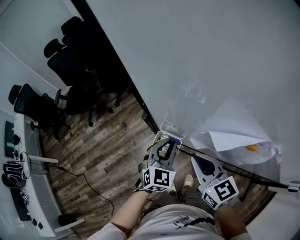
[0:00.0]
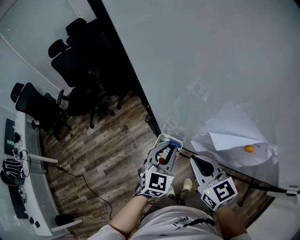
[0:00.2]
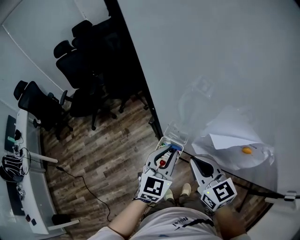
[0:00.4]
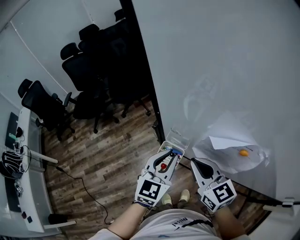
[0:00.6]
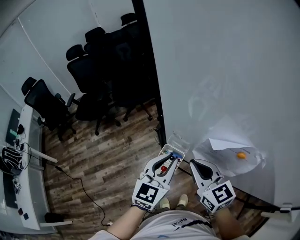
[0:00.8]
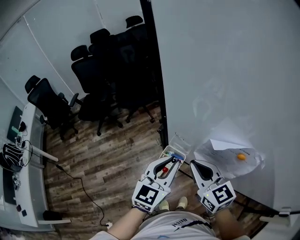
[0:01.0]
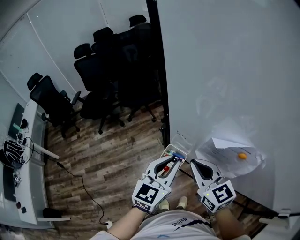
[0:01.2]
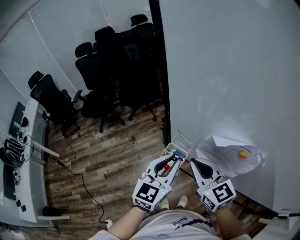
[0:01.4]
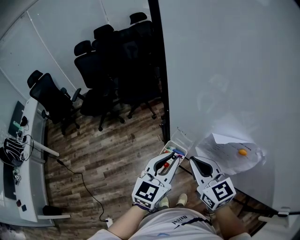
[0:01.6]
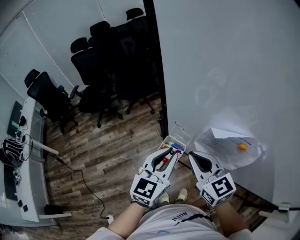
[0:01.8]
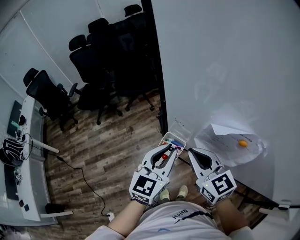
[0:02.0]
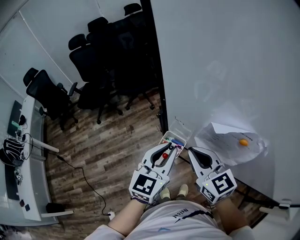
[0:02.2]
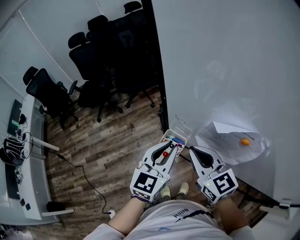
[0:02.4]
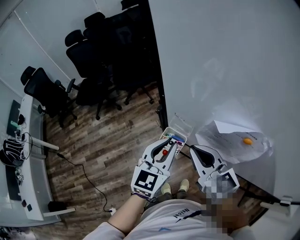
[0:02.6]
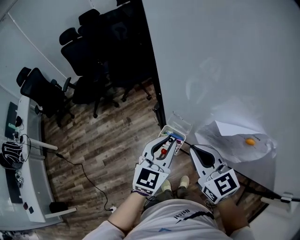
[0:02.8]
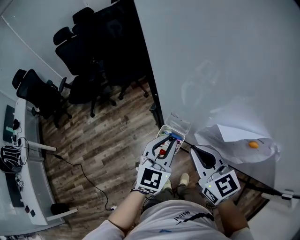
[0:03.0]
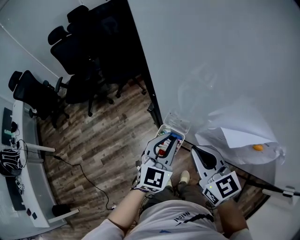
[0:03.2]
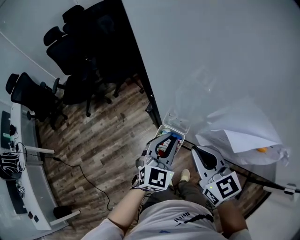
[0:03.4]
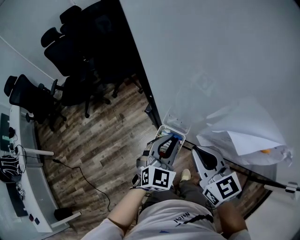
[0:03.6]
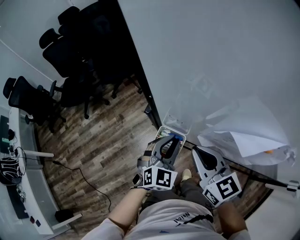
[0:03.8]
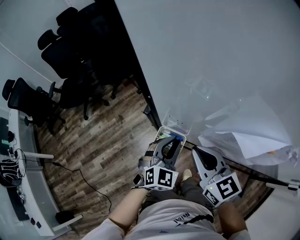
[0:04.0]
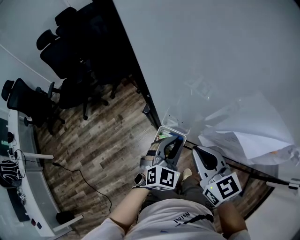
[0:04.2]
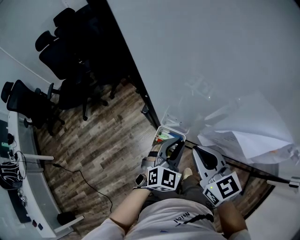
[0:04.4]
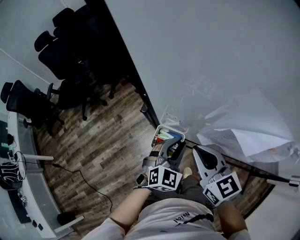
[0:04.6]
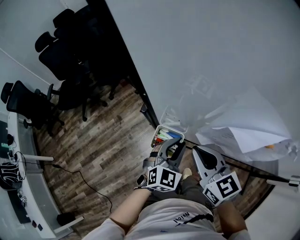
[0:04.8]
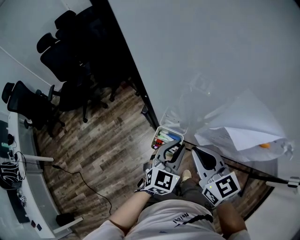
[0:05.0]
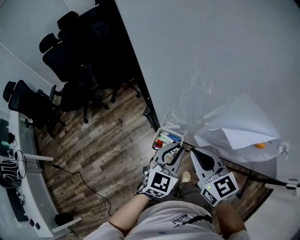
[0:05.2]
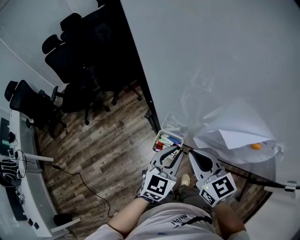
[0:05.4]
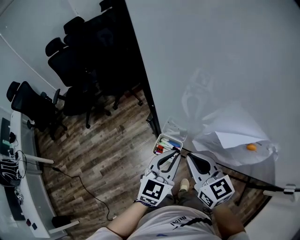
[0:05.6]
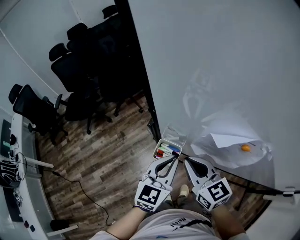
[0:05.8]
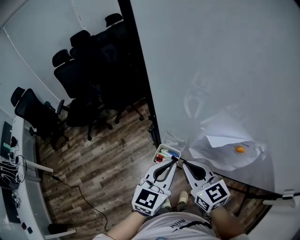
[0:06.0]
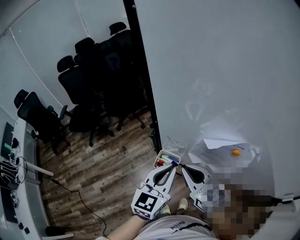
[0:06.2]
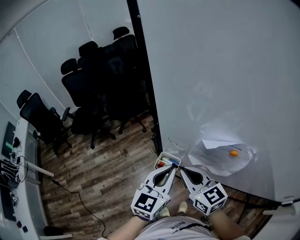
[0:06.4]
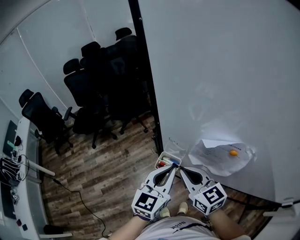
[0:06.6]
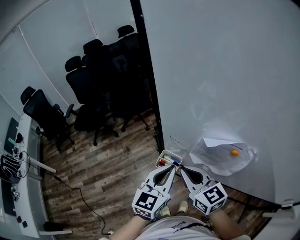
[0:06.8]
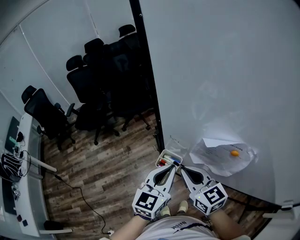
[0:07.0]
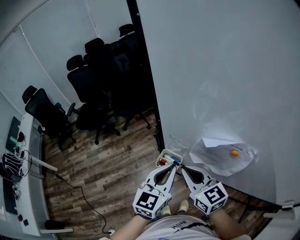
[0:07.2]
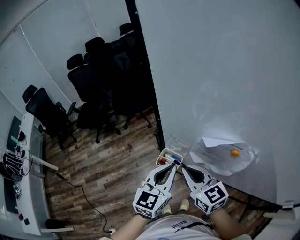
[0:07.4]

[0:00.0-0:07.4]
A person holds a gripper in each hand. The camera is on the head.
0:00.0 to 0:01.4: The right gripper goes about 5 cm upward; the left gripper travels upward and backward by about 15 cm, and turns by some 30 degrees.
0:01.4 to 0:03.0: The left gripper shifts some 5 cm downward.
0:03.0 to 0:04.4: The left gripper moves downward, approximately 15 cm, and swivels some 20 degrees. The right gripper heads downward, covering some 5 cm.
0:04.4 to 0:06.0: The right gripper shifts about 5 cm upward; the left gripper heads upward, covering roughly 15 cm, and turns by some 30 degrees.
0:06.0 to 0:07.4: There are only small adjustments of the grippers.

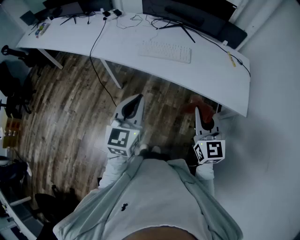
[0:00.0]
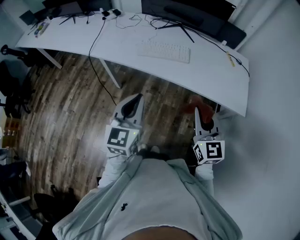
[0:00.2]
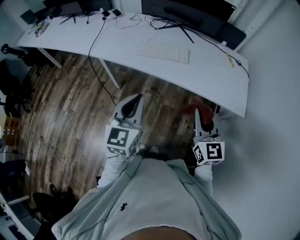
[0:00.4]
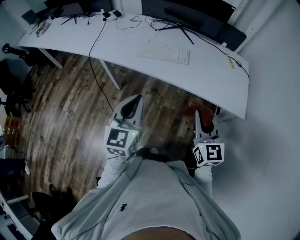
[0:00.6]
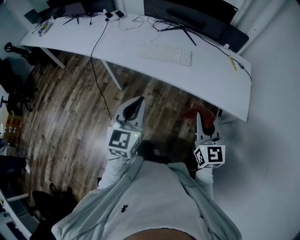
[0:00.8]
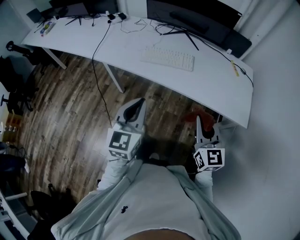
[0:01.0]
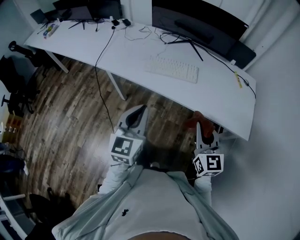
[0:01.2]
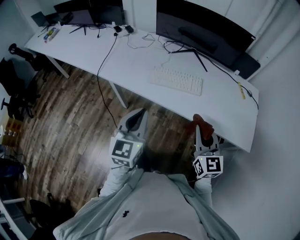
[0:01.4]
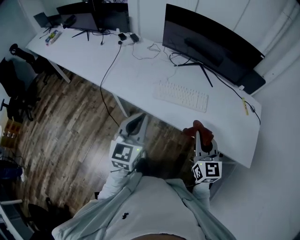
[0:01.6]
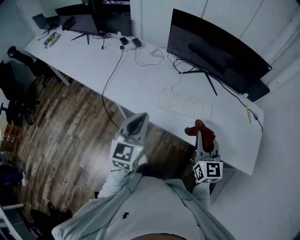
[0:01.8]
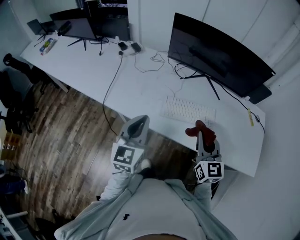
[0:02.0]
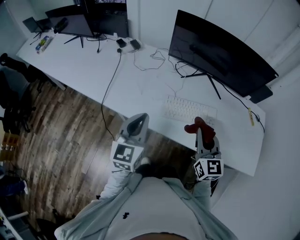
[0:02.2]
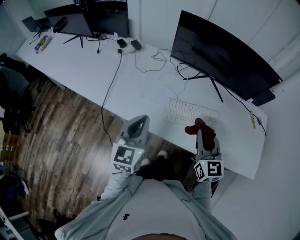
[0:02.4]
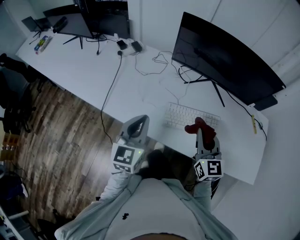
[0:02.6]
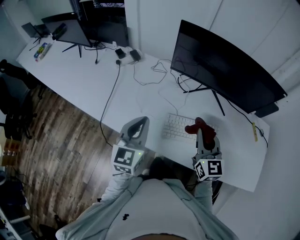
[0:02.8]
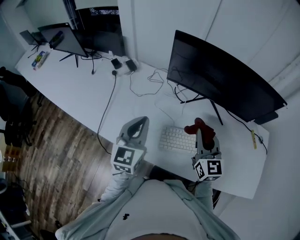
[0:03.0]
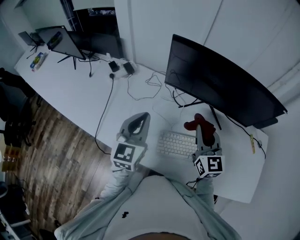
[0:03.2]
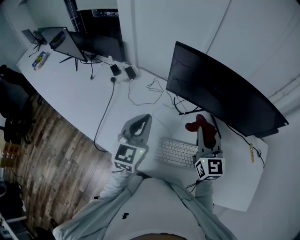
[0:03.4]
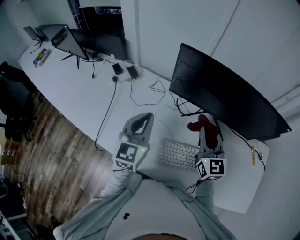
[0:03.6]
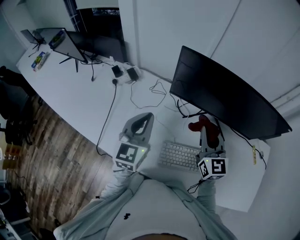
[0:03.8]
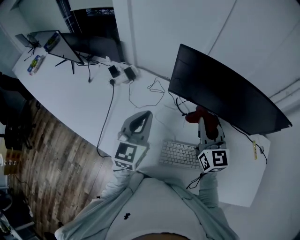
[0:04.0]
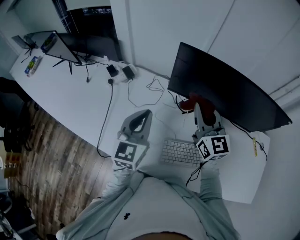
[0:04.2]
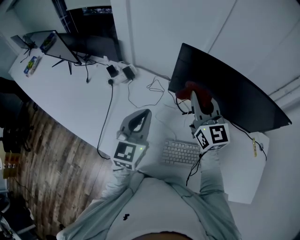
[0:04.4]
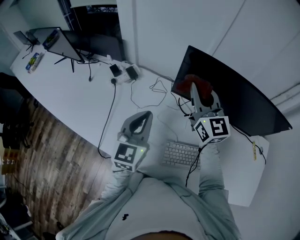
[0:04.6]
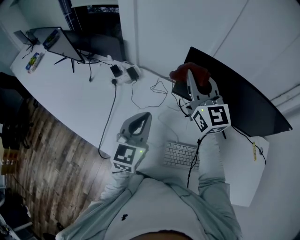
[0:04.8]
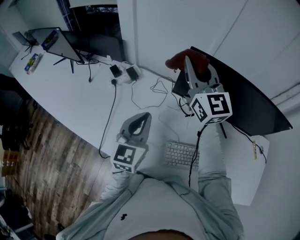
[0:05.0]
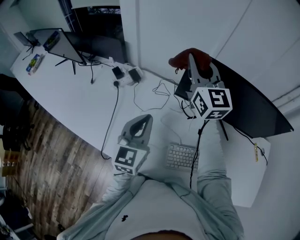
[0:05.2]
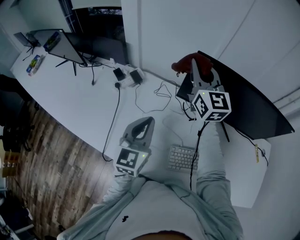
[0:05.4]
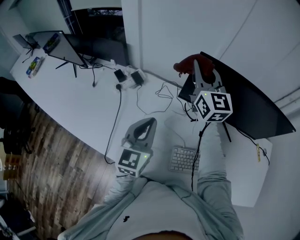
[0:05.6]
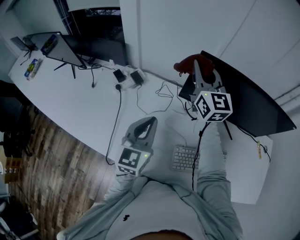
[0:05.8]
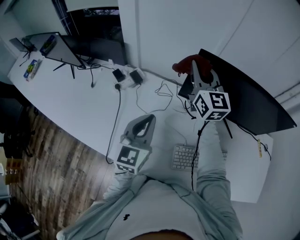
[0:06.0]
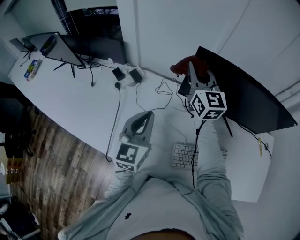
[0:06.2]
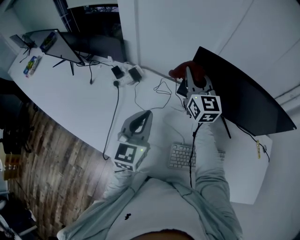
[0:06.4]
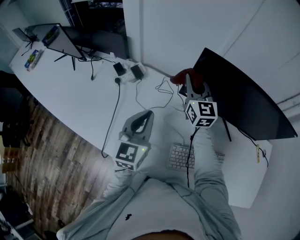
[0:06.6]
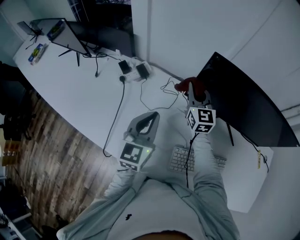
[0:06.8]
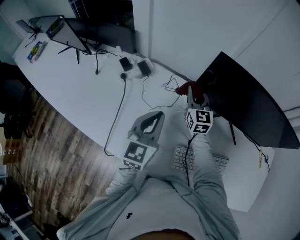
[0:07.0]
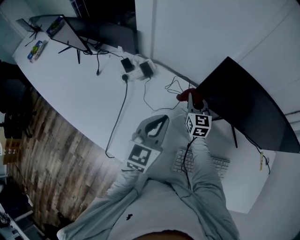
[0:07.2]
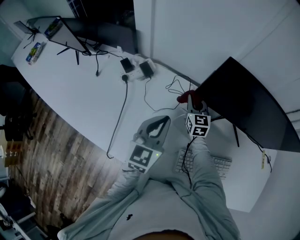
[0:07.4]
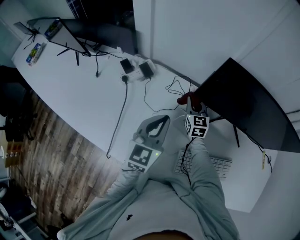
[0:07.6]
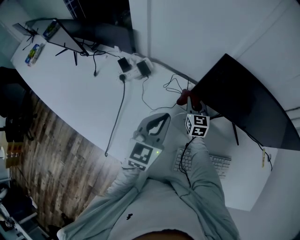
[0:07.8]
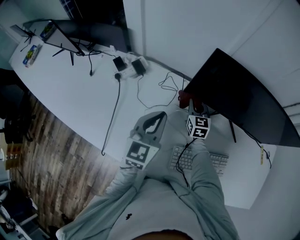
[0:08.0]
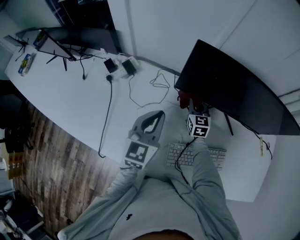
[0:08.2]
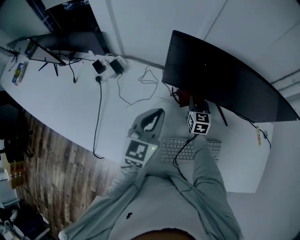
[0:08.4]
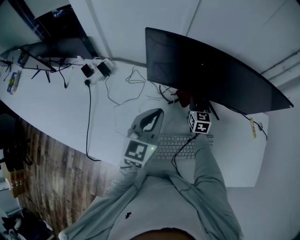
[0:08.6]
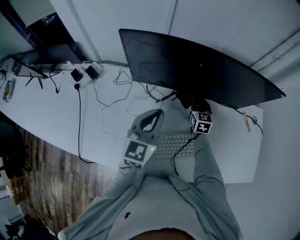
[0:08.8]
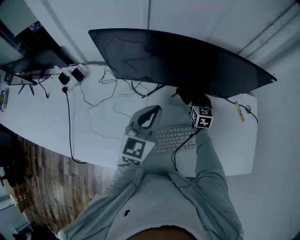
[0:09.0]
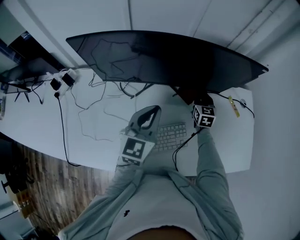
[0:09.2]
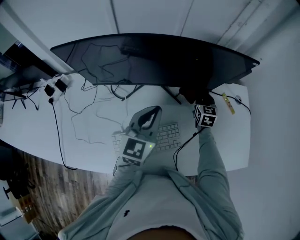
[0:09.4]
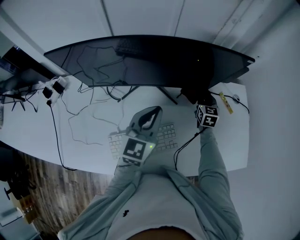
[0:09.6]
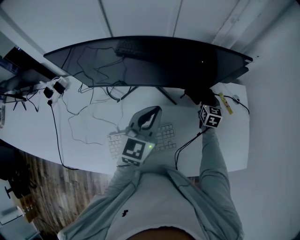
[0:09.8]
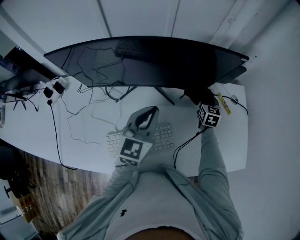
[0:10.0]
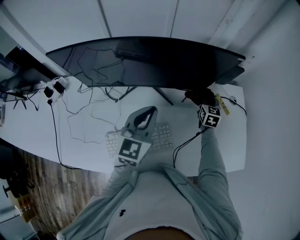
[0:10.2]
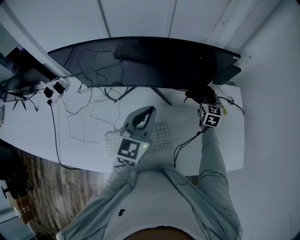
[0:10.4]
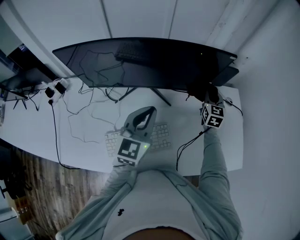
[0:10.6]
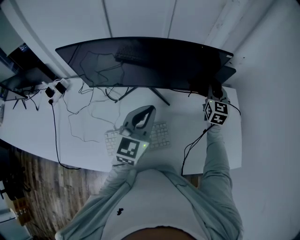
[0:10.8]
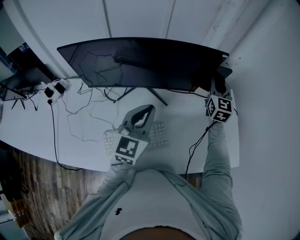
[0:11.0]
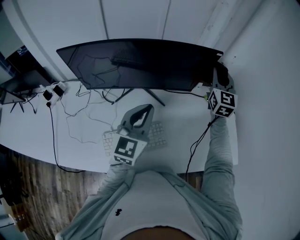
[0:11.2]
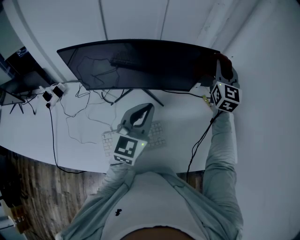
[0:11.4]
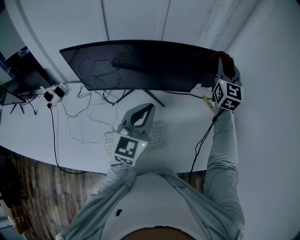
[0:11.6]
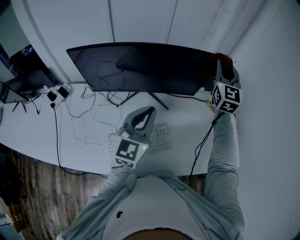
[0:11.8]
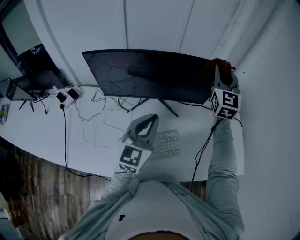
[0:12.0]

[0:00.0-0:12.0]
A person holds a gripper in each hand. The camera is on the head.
0:00.0 to 0:01.6: The right gripper is displaced forward by approximately 20 cm. The left gripper goes roughly 20 cm forward and to the left.
0:01.6 to 0:03.0: The grippers both shift forward by approximately 30 cm.
0:03.0 to 0:04.4: The left gripper is displaced forward by roughly 10 cm. Meanwhile the right gripper heads forward, upward and to the left, covering some 25 cm.
0:04.4 to 0:06.0: The right gripper is displaced forward and to the left by roughly 15 cm.
0:06.0 to 0:07.6: The right gripper goes roughly 30 cm downward, and rotates approximately 30 degrees, while the left gripper moves approximately 5 cm.
0:07.6 to 0:09.0: The grippers both shift to the right by some 35 cm. The right gripper swivels approximately 20 degrees.
0:09.0 to 0:10.4: The right gripper moves to the right, approximately 20 cm; the left gripper heads to the right, covering roughly 15 cm.
0:10.4 to 0:12.0: The right gripper travels upward by some 30 cm, and changes its angle by some 30 degrees. Meanwhile the left gripper goes roughly 10 cm backward and upward.

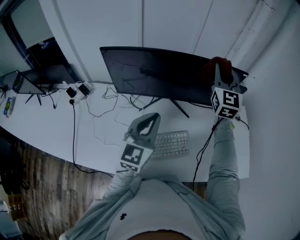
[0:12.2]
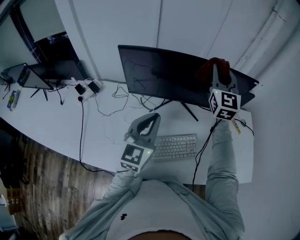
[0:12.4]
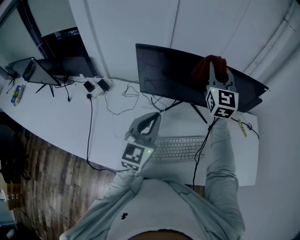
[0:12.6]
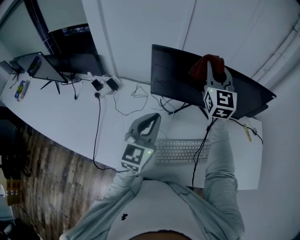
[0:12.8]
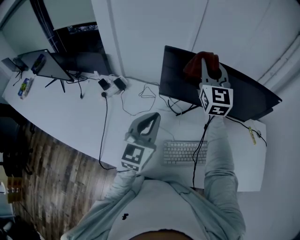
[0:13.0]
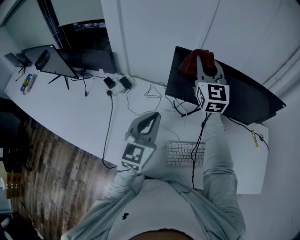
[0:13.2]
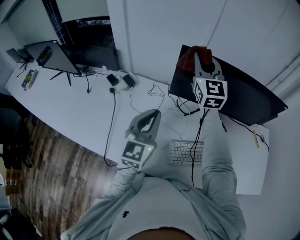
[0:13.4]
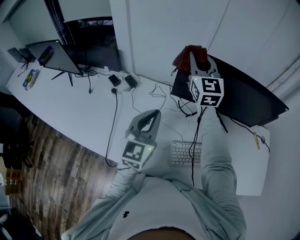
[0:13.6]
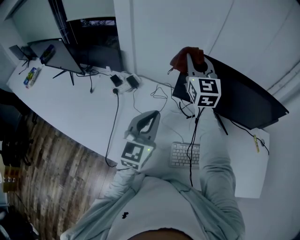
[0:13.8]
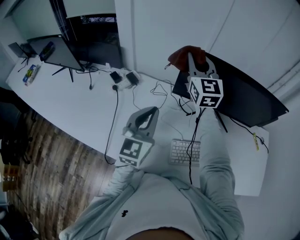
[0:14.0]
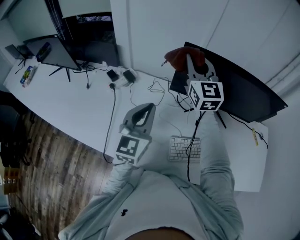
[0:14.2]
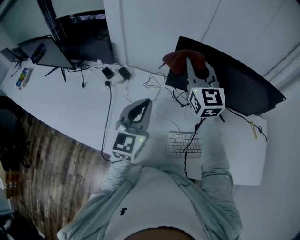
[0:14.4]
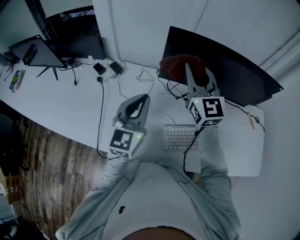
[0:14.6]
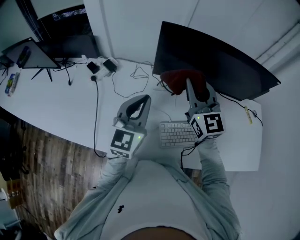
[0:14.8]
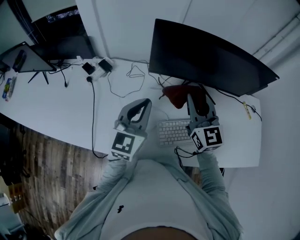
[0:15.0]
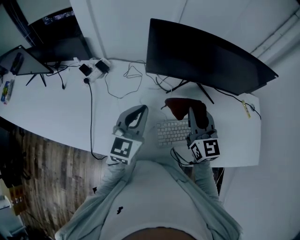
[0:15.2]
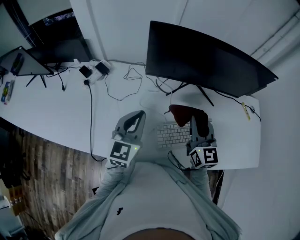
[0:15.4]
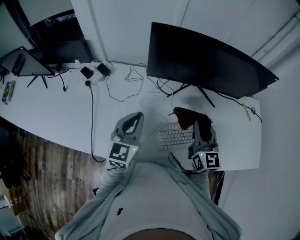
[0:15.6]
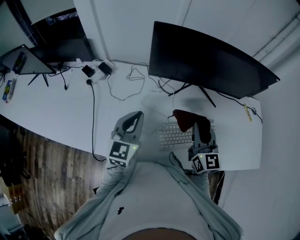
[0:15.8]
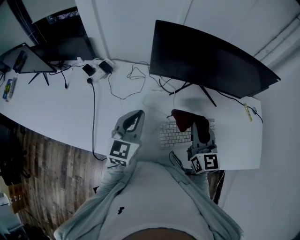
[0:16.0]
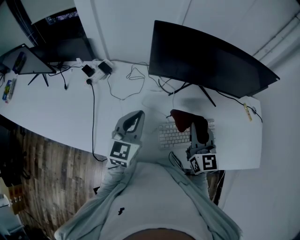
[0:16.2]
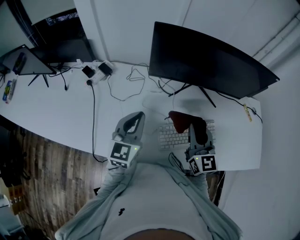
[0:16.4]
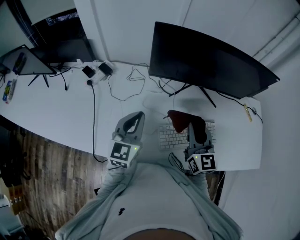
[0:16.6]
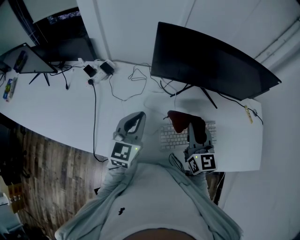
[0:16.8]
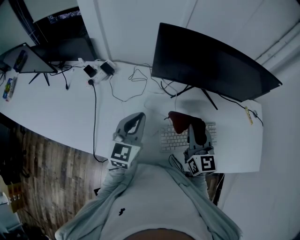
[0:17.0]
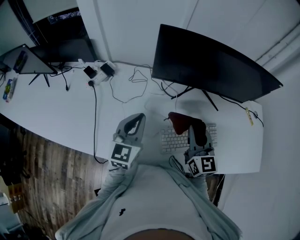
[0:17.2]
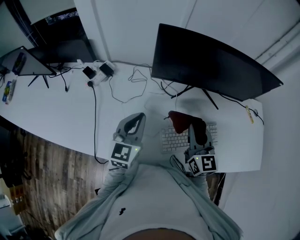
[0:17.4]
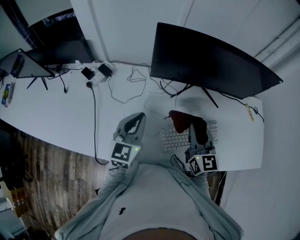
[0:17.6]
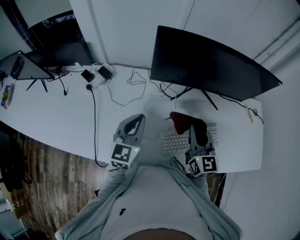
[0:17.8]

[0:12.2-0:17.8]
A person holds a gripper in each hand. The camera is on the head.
0:12.2 to 0:13.6: The right gripper goes some 40 cm to the left, and rotates some 20 degrees. The left gripper shifts approximately 25 cm to the left.
0:13.6 to 0:15.0: The right gripper moves backward, downward and to the right, roughly 25 cm, while the left gripper moves to the right, roughly 5 cm.
0:15.0 to 0:16.4: The left gripper shifts some 5 cm downward, while the right gripper travels downward and backward by approximately 10 cm.
0:16.4 to 0:17.8: There are only small adjustments of the grippers.
